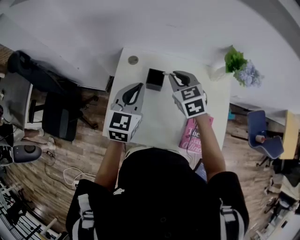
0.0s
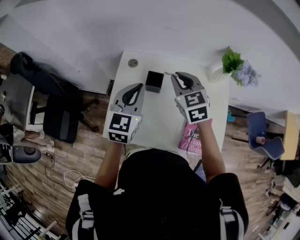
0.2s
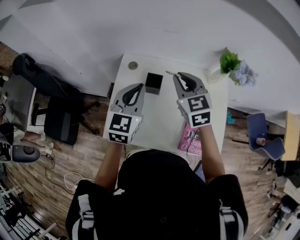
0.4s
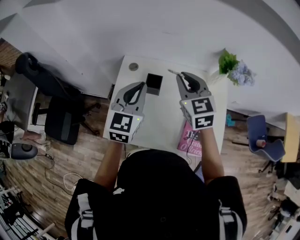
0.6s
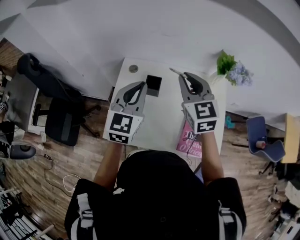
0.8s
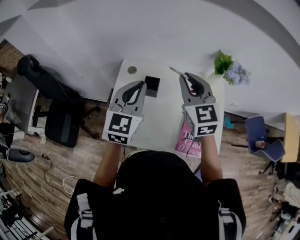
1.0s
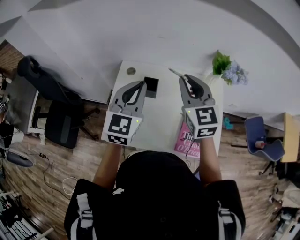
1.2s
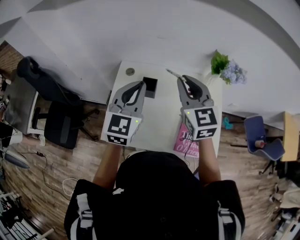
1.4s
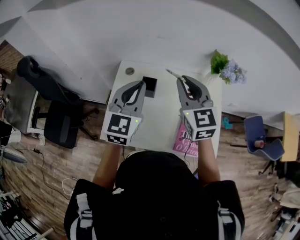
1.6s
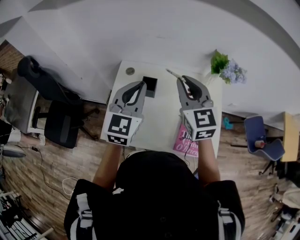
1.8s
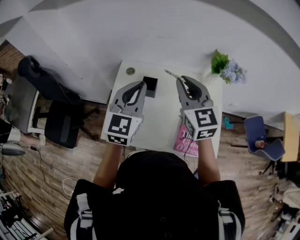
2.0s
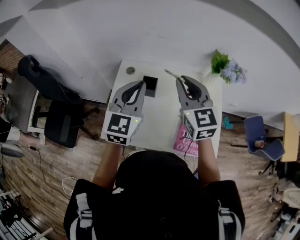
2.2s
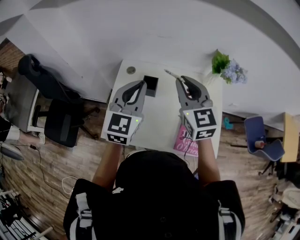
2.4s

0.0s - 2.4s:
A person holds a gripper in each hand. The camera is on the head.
0.0s - 1.2s: The right gripper travels upward, backward and to the right by some 20 cm, and changes its angle by approximately 30 degrees. The left gripper is displaced upward by some 10 cm.
1.2s - 2.4s: The grippers move only a little.

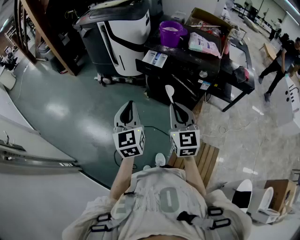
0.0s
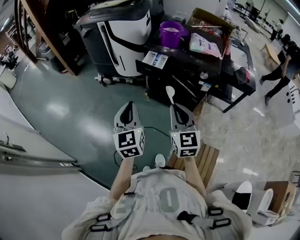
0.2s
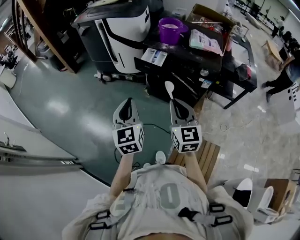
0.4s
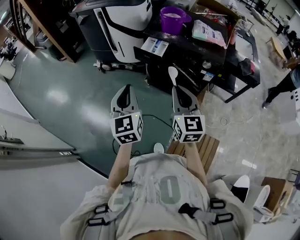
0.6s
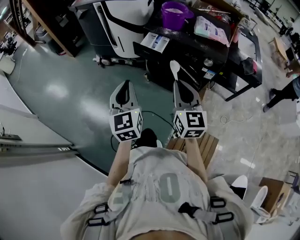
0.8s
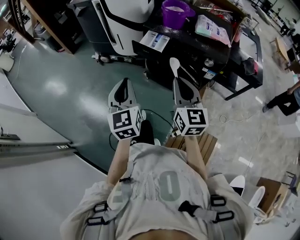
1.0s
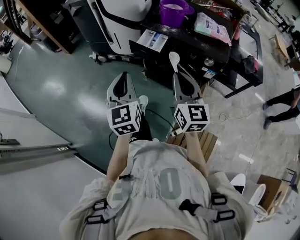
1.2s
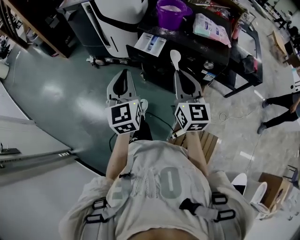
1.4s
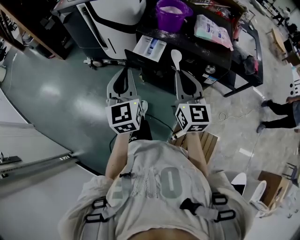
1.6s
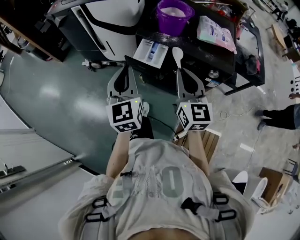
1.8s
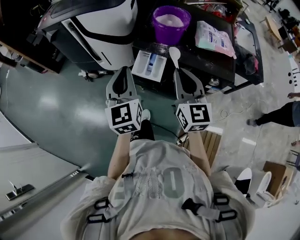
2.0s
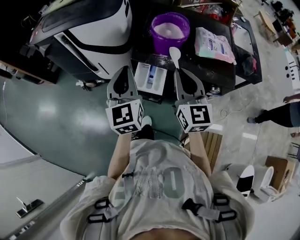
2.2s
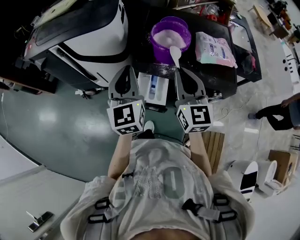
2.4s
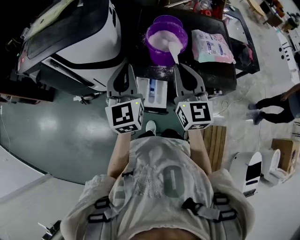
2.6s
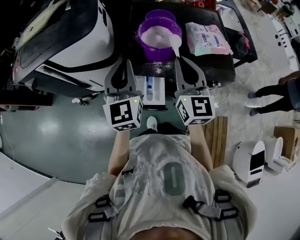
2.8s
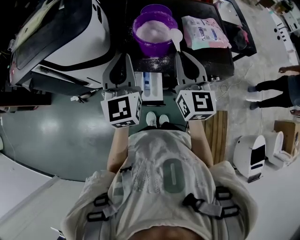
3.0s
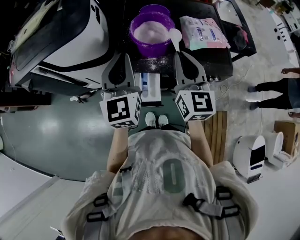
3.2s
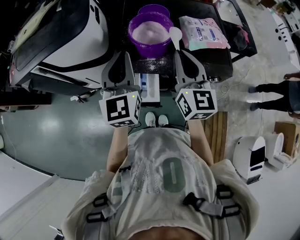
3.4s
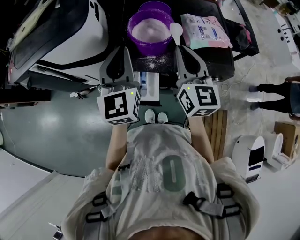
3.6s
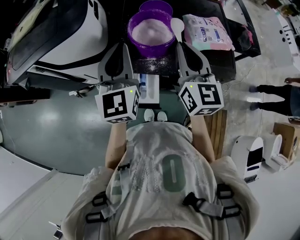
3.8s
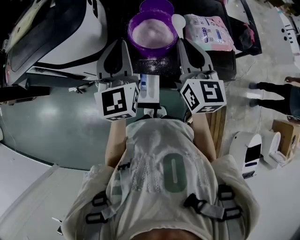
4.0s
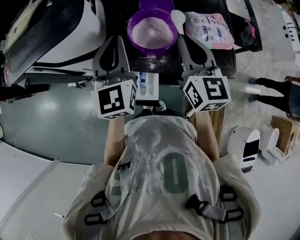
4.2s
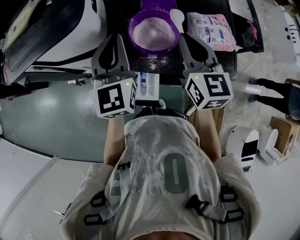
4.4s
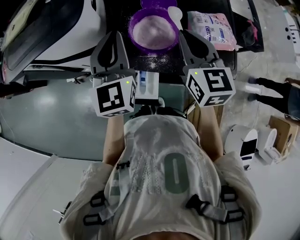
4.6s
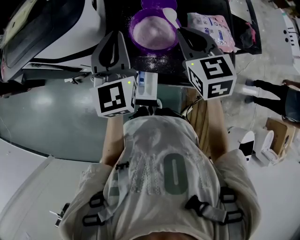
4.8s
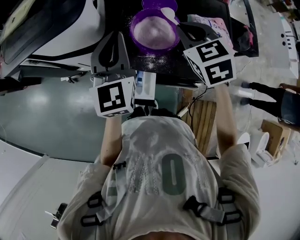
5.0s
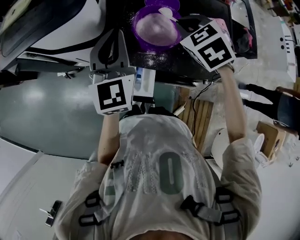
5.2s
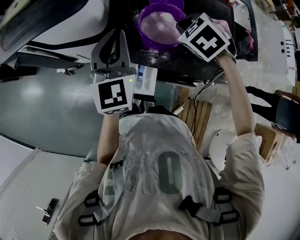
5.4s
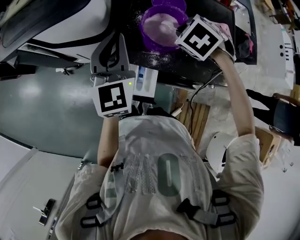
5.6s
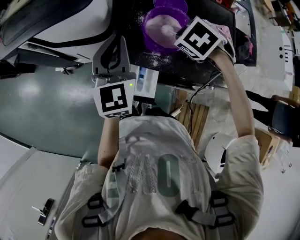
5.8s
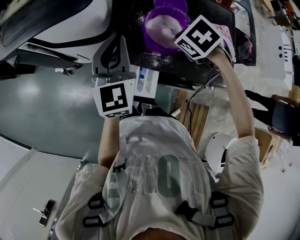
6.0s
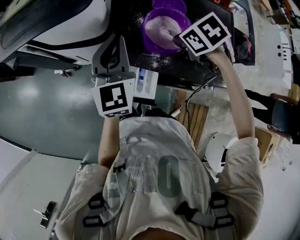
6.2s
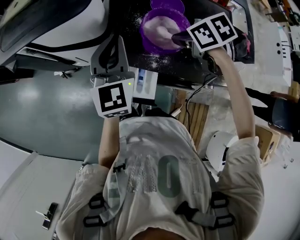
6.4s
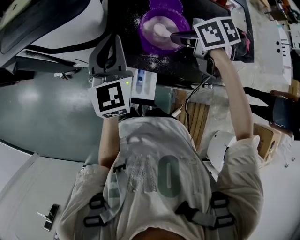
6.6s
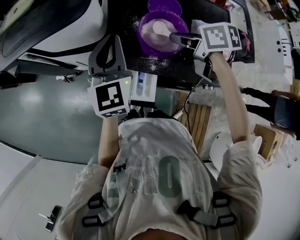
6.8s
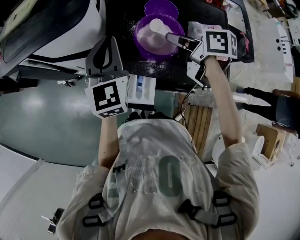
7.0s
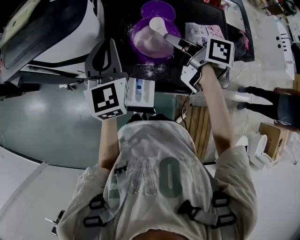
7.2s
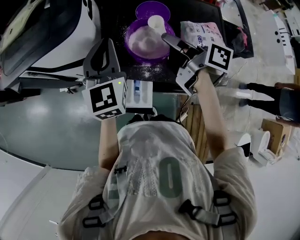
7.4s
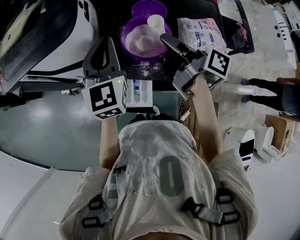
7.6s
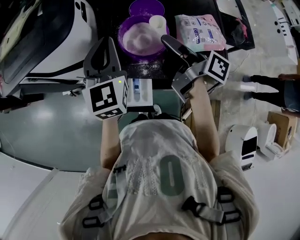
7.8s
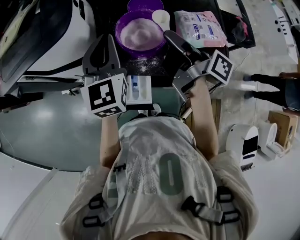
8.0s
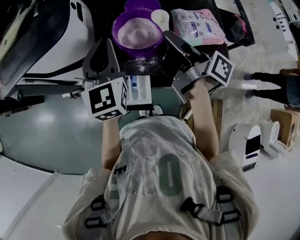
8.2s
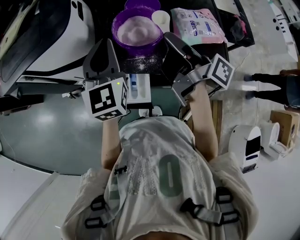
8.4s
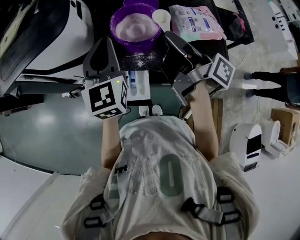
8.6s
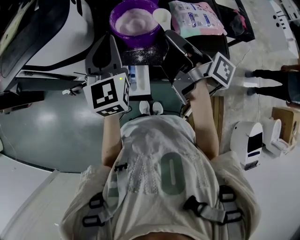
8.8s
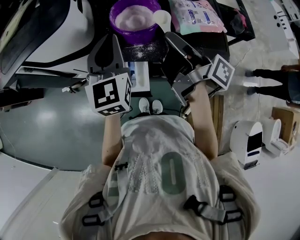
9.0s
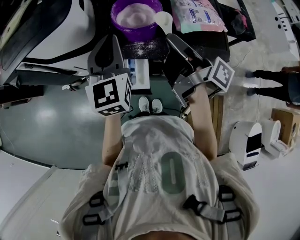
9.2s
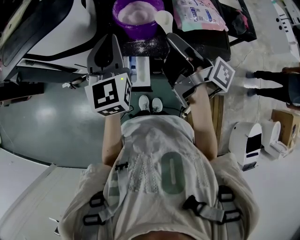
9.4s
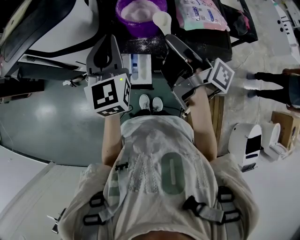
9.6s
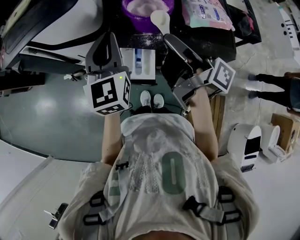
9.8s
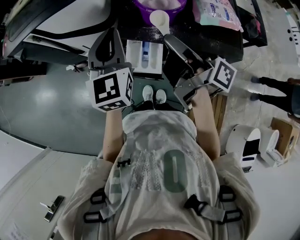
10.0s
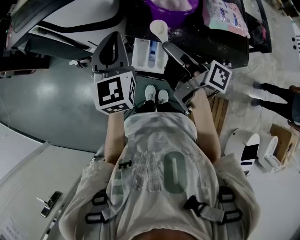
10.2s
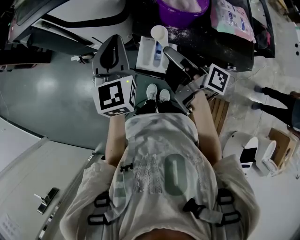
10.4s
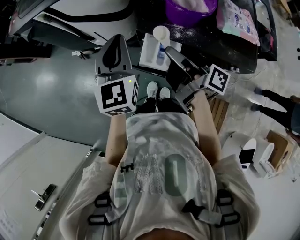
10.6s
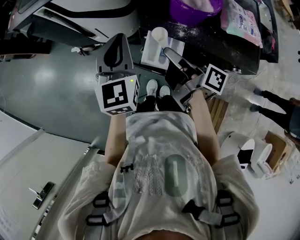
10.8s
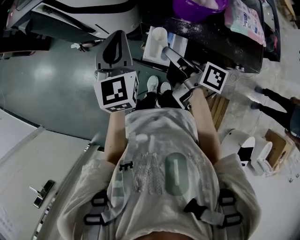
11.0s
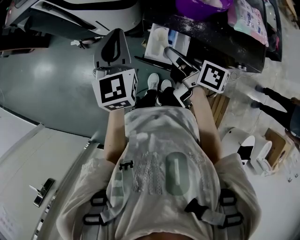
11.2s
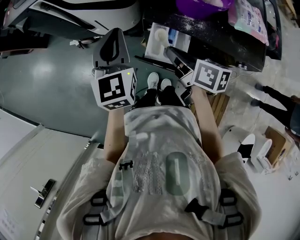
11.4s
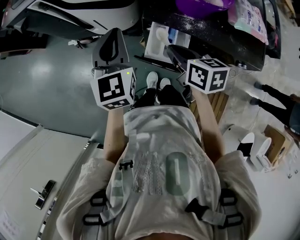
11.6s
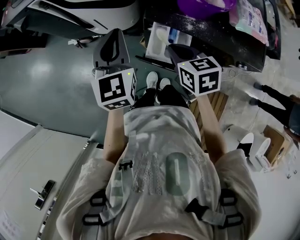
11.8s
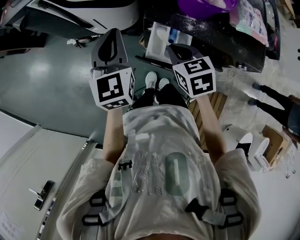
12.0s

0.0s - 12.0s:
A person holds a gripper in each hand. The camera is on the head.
0.0s - 1.6s: The two grippers go approximately 20 cm forward.
1.6s - 3.0s: Both grippers travel together forward, approximately 30 cm. The right gripper rotates about 20 degrees, while the left gripper changes its angle by approximately 30 degrees.
3.0s - 4.4s: Both grippers travel together forward, approximately 10 cm.
4.4s - 6.0s: The left gripper ends up roughly 5 cm from where it was; the right gripper goes some 10 cm downward, and angles its fingers downward, by roughly 60 degrees.
6.0s - 7.6s: The right gripper heads upward, covering about 10 cm, and points its fingers about 80 degrees further upward. Meanwhile the left gripper changes place by approximately 5 cm.
7.6s - 9.0s: The two grippers go about 10 cm backward.
9.0s - 10.4s: The right gripper goes approximately 15 cm to the left and downward, while the left gripper is displaced to the left by approximately 15 cm.
10.4s - 12.0s: The right gripper goes about 10 cm downward, and points its fingers about 50 degrees further downward; the left gripper is displaced downward and to the left by approximately 10 cm.

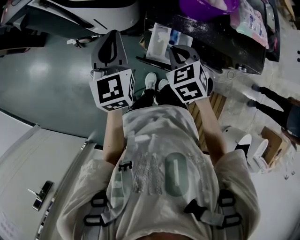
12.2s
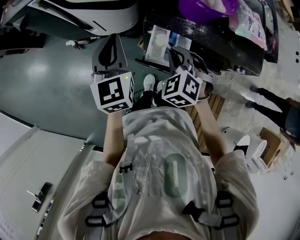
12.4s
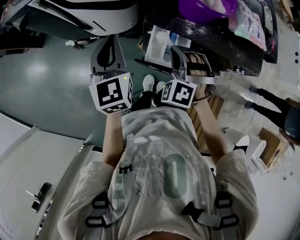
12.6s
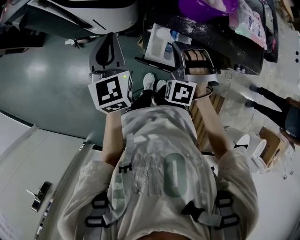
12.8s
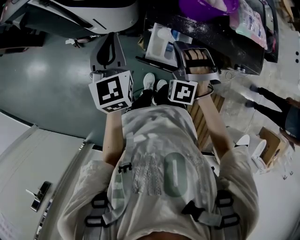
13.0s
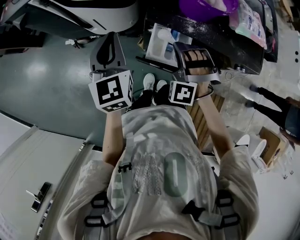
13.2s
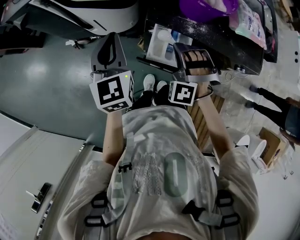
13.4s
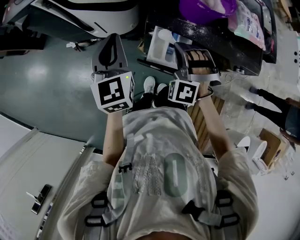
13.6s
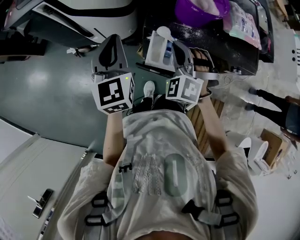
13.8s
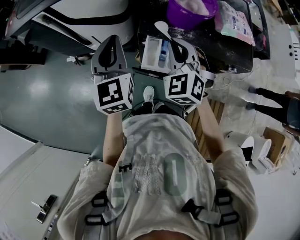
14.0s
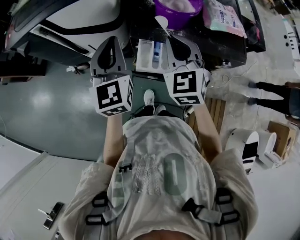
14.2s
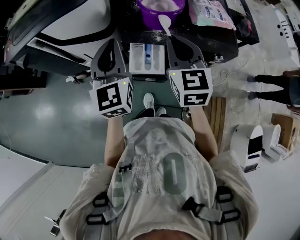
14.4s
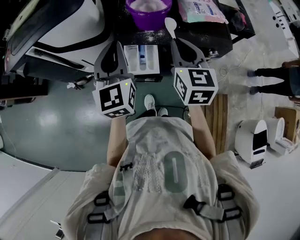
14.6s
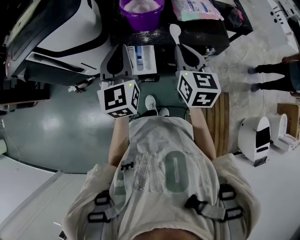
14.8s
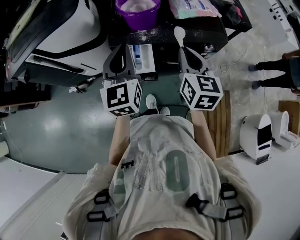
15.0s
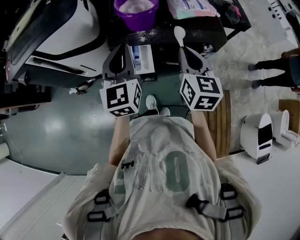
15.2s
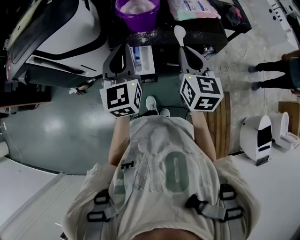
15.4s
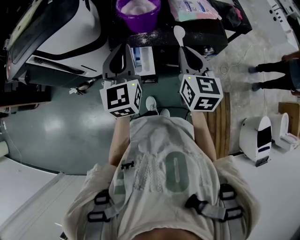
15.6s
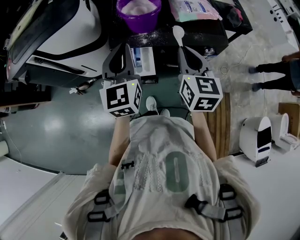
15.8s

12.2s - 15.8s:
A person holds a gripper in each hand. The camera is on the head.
12.2s - 14.0s: The left gripper changes place by approximately 5 cm. Meanwhile the right gripper shifts about 10 cm upward, and swivels about 30 degrees.
14.0s - 15.8s: The grippers both shift to the right by some 15 cm. The right gripper rolls clockwise, seen from behind, by about 60 degrees.

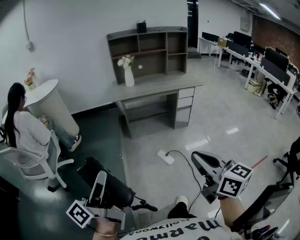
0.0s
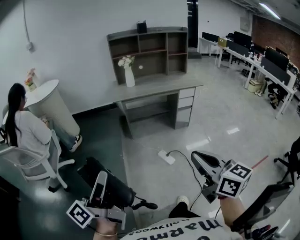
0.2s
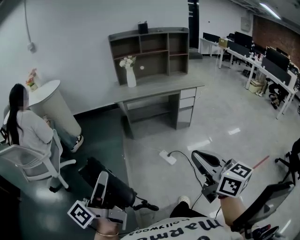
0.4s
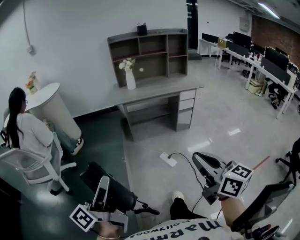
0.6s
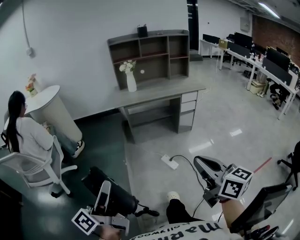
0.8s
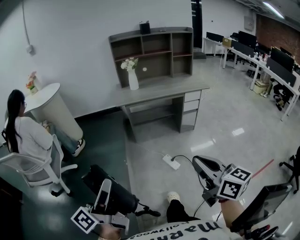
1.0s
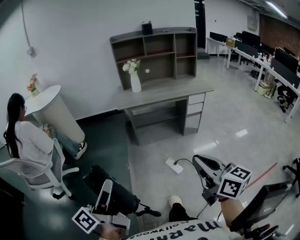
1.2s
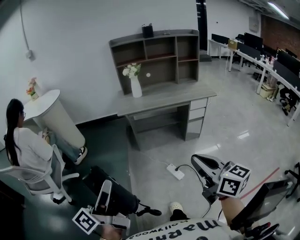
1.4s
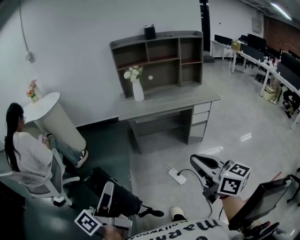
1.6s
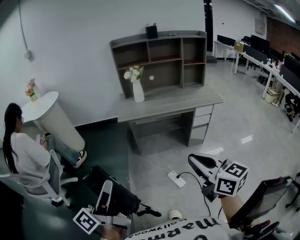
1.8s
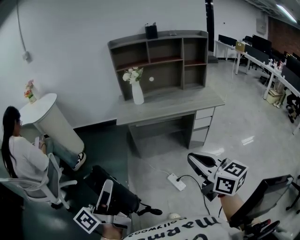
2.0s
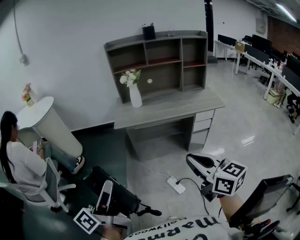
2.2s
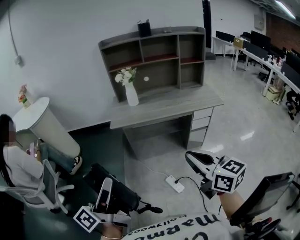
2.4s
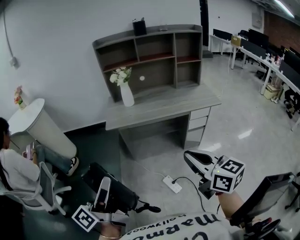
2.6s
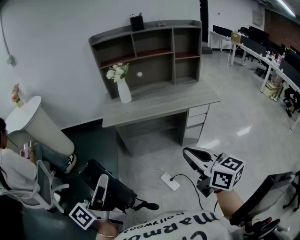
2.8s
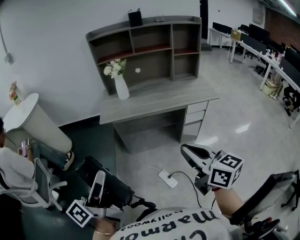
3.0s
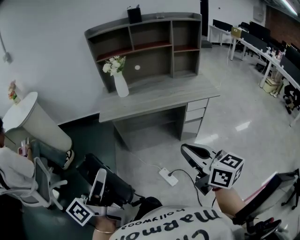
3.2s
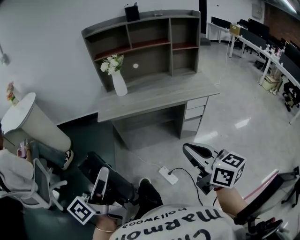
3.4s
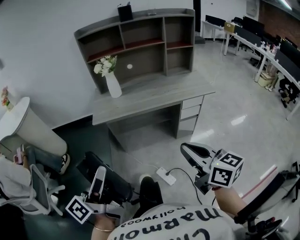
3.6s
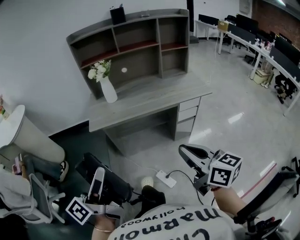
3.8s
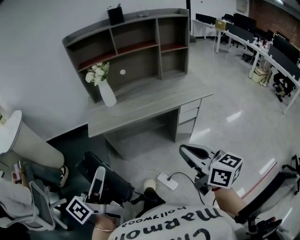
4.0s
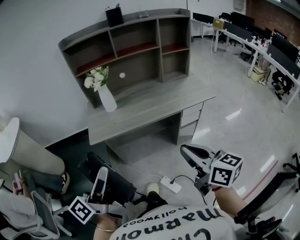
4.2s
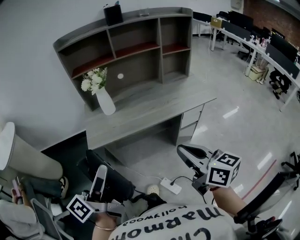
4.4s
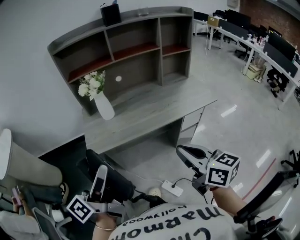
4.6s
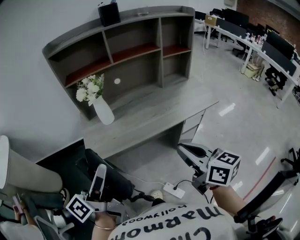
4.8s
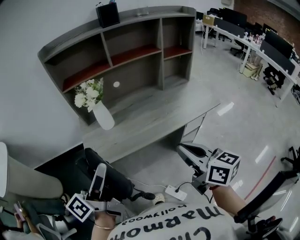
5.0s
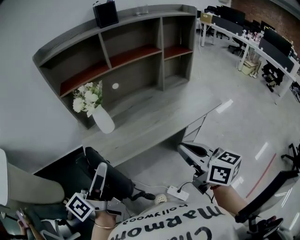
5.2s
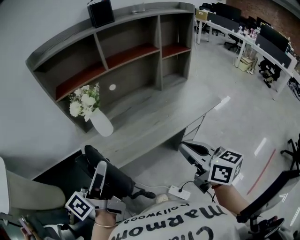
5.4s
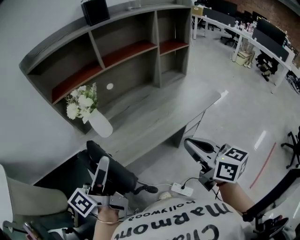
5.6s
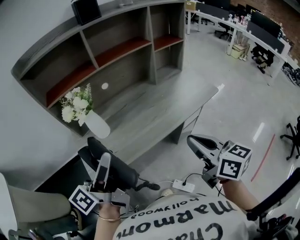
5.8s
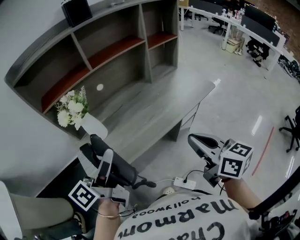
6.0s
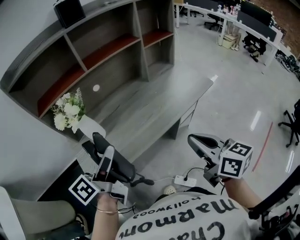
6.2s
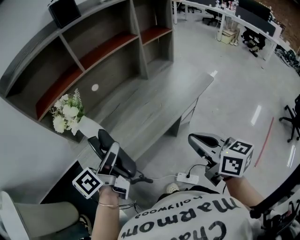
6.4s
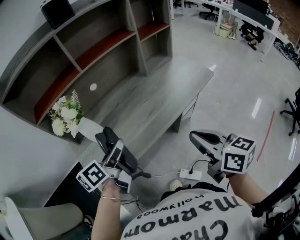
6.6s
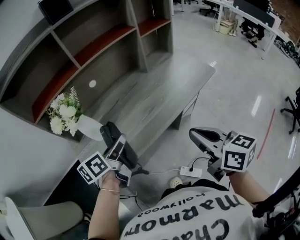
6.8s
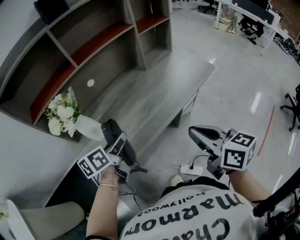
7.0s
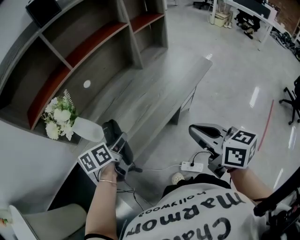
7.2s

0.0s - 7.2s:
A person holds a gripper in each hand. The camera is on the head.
0.0s - 1.4s: Both grippers move forward, some 15 cm.
1.4s - 2.8s: Both grippers travel together forward and to the right, approximately 25 cm.
2.8s - 4.4s: The two grippers go some 20 cm forward.
4.4s - 5.8s: Both grippers travel together forward, some 20 cm.
5.8s - 7.2s: The left gripper moves downward and forward, approximately 20 cm, and points its fingers approximately 50 degrees further downward.
